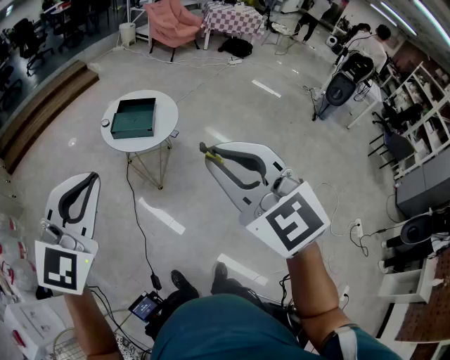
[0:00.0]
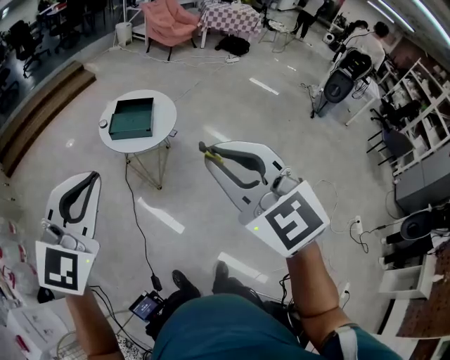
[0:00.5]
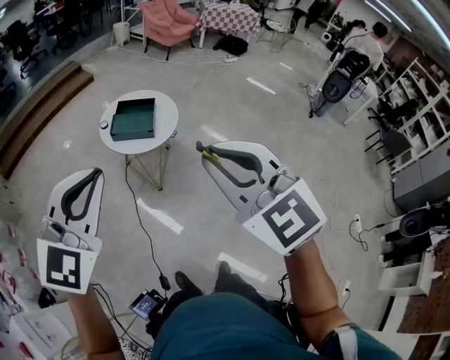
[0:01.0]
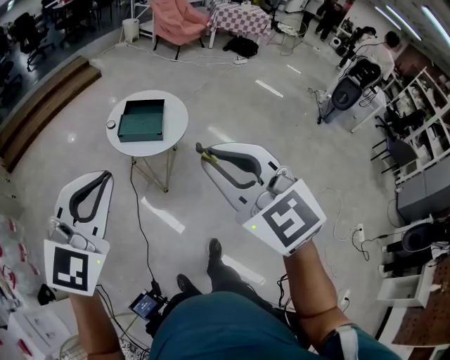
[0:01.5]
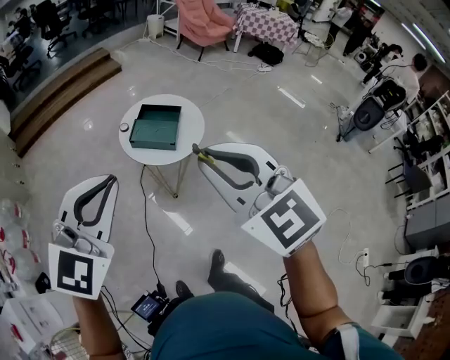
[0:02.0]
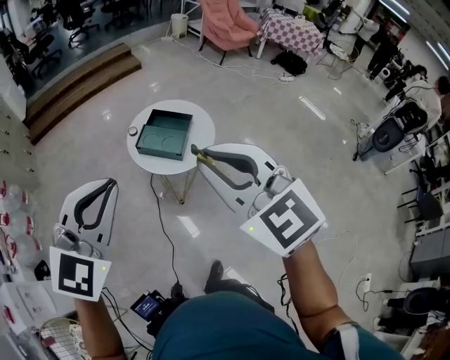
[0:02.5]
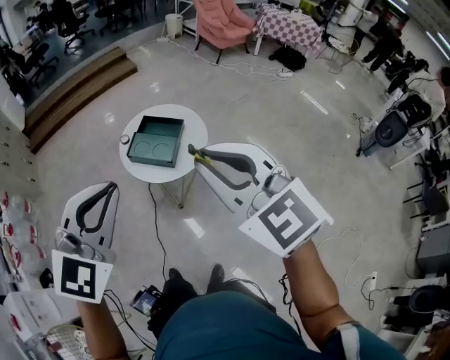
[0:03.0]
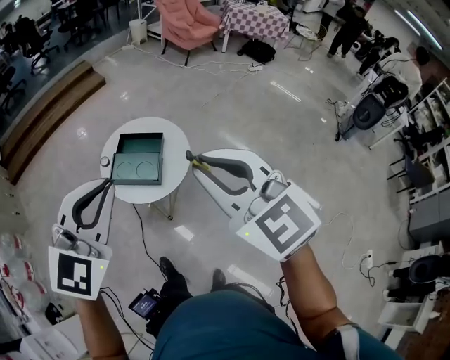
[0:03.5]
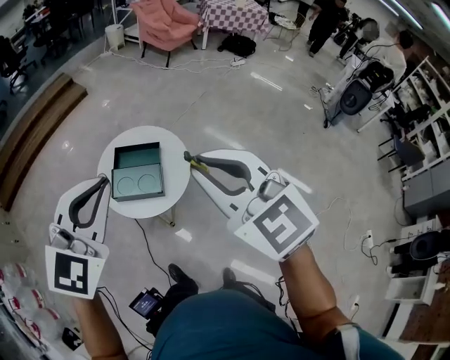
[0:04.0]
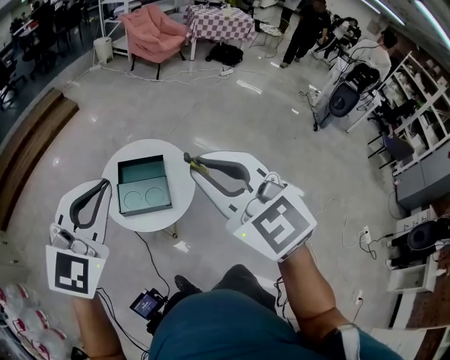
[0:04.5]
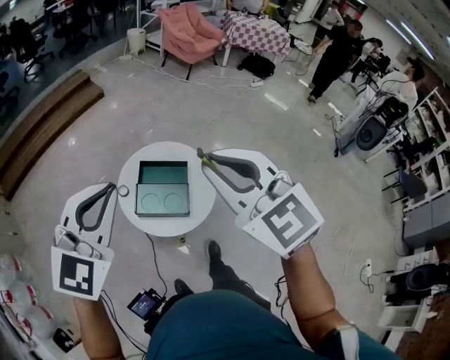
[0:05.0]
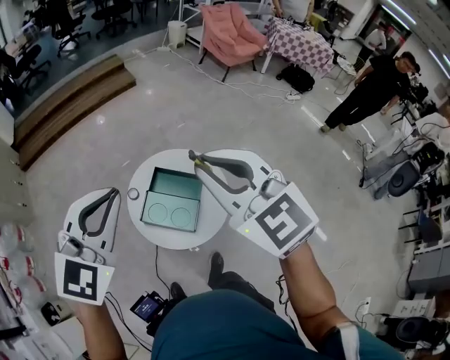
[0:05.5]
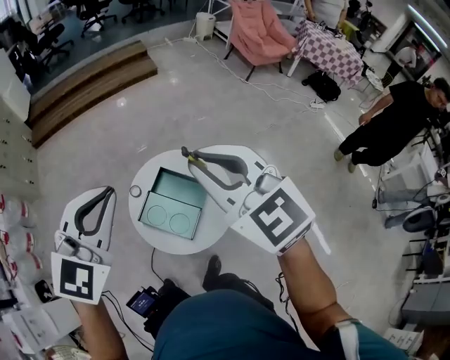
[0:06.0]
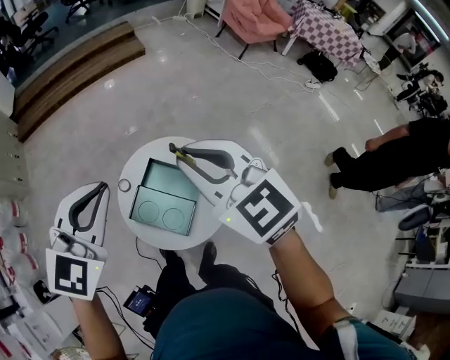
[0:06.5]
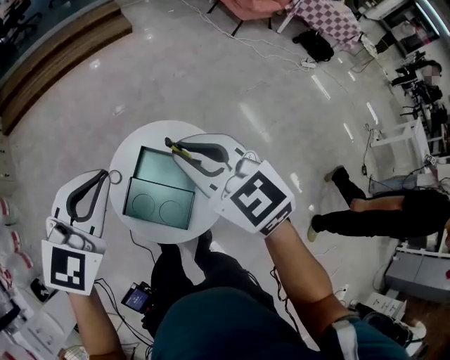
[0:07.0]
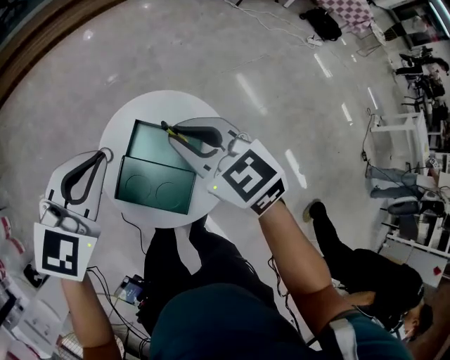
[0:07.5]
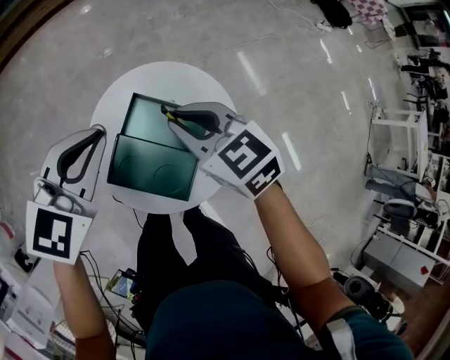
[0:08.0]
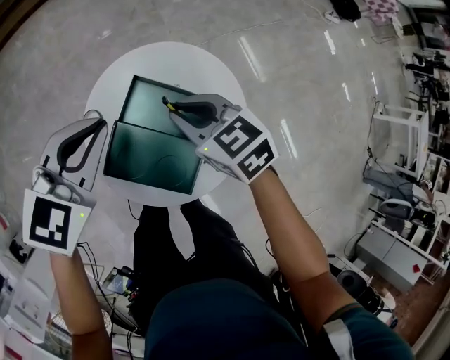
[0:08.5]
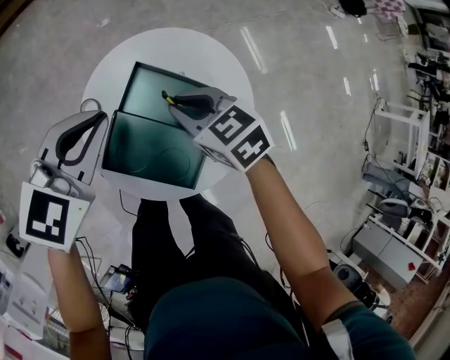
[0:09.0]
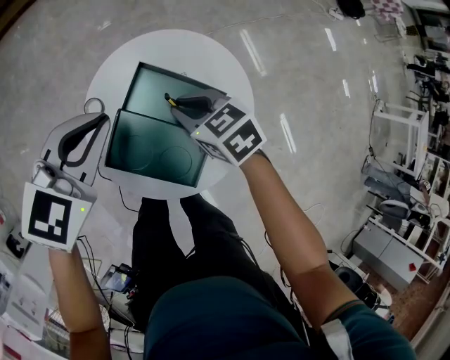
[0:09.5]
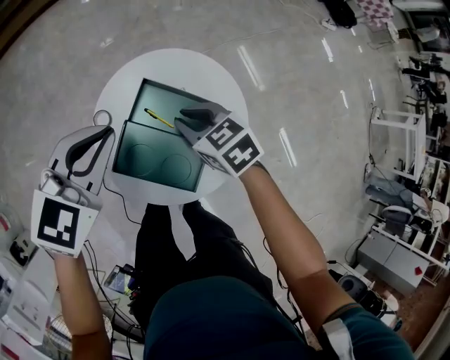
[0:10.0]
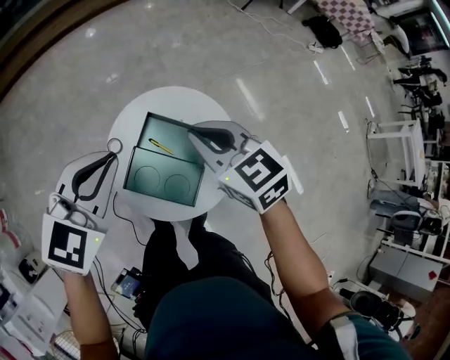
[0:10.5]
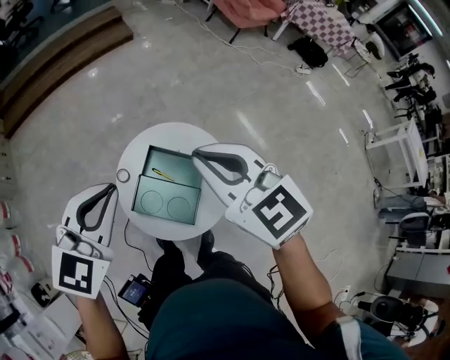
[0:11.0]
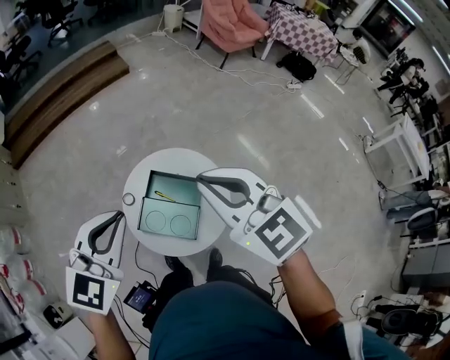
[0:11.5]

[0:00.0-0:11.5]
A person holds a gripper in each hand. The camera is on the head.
0:00.0 to 0:02.0: The two grippers go about 25 cm forward.
0:02.0 to 0:04.0: The grippers both shift forward by approximately 40 cm.
0:04.0 to 0:06.0: The left gripper shifts by roughly 35 cm, and rotates roughly 30 degrees, while the right gripper moves approximately 40 cm, and swivels approximately 30 degrees.
0:06.0 to 0:07.5: Both grippers travel together downward and forward, about 40 cm. The right gripper changes its angle by about 20 degrees.
0:07.5 to 0:09.5: The right gripper shifts roughly 25 cm downward, and changes its angle by approximately 20 degrees. Meanwhile the left gripper travels downward by some 15 cm.
0:09.5 to 0:11.5: The right gripper is displaced upward by approximately 50 cm, and tilts its fingers roughly 30 degrees upward. The left gripper moves upward and backward, approximately 40 cm.

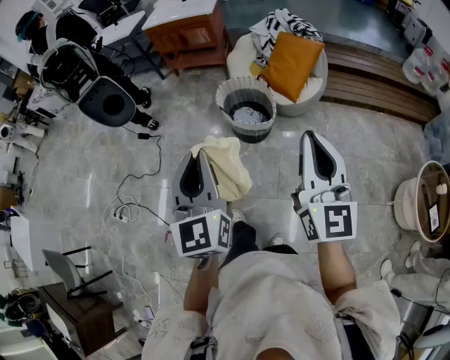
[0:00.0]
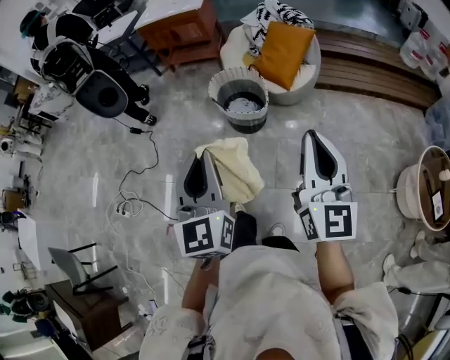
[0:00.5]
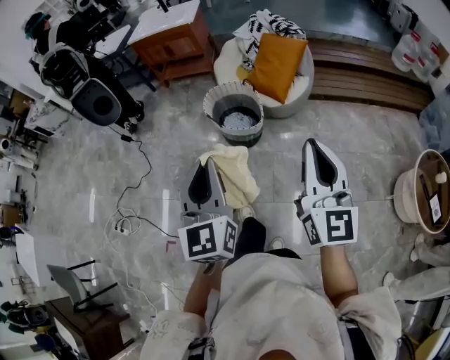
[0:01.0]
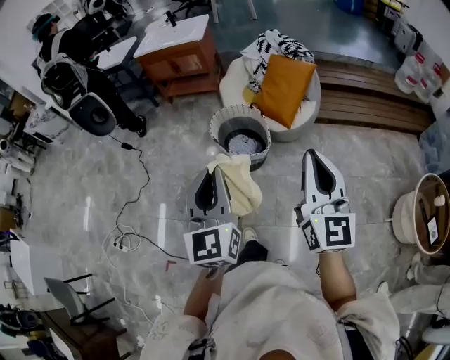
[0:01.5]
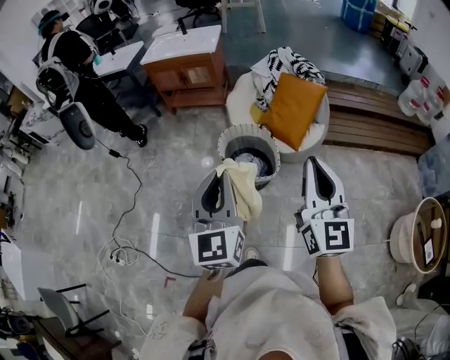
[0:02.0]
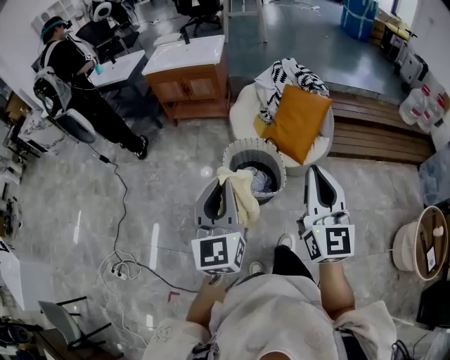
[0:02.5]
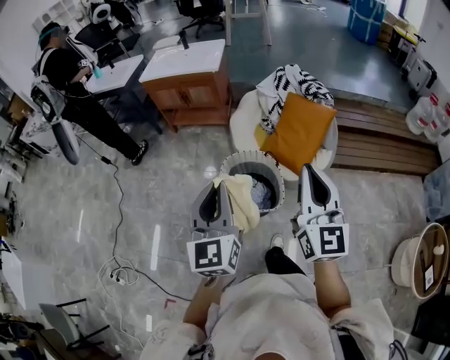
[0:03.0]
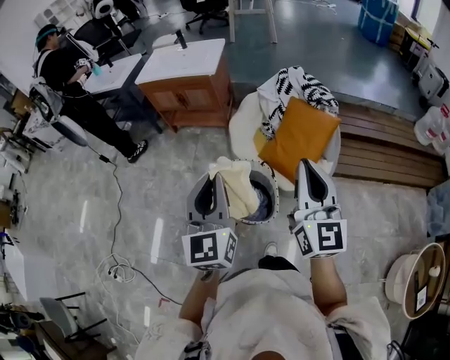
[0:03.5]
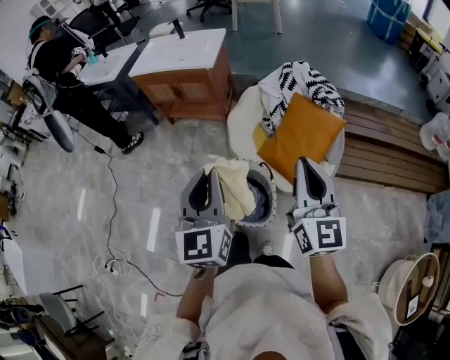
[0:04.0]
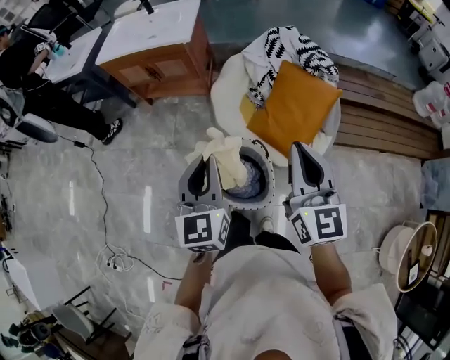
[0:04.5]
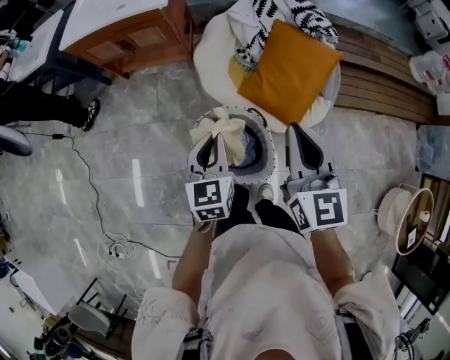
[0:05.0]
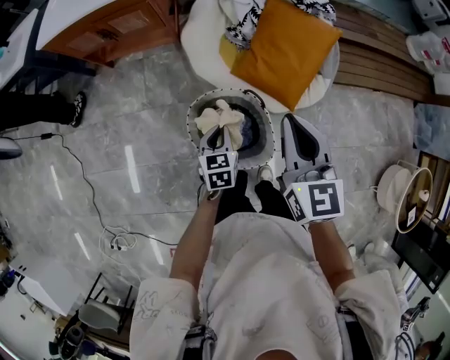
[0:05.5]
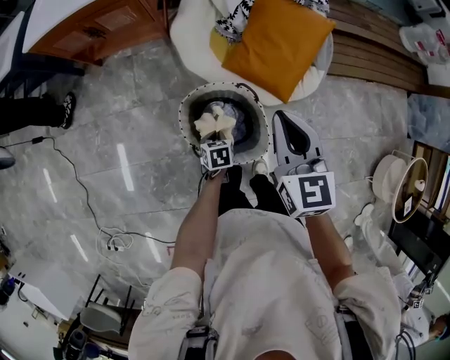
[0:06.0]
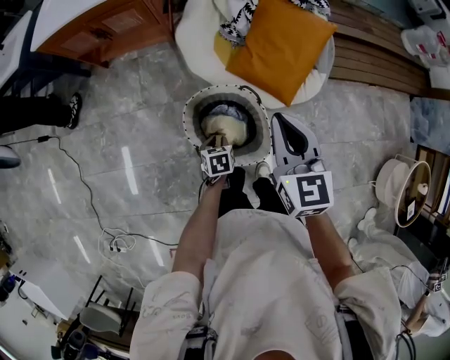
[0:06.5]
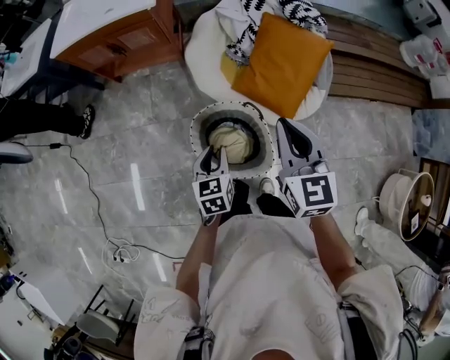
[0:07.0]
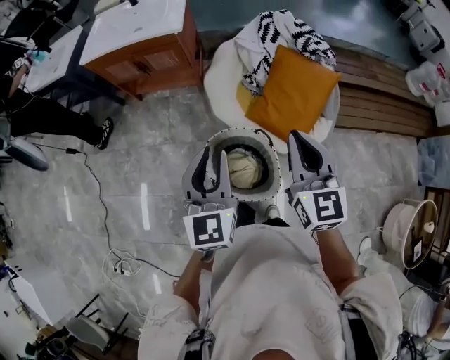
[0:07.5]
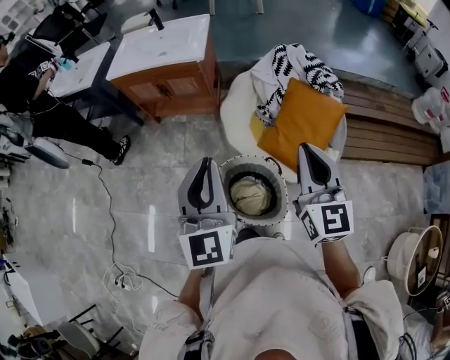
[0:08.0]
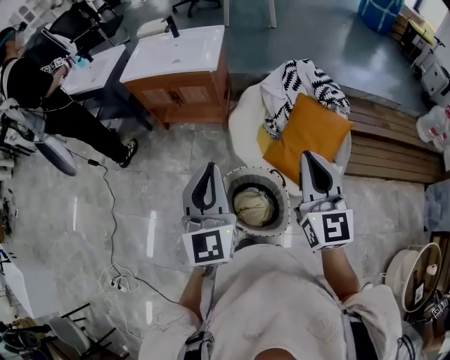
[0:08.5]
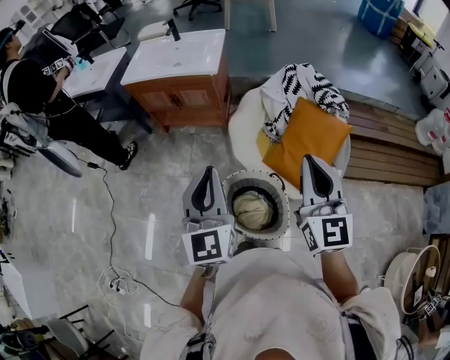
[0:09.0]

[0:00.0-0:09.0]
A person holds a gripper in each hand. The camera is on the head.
0:00.0 to 0:02.0: Both grippers travel together forward, approximately 20 cm.
0:02.0 to 0:04.5: The two grippers travel together, forward, approximately 40 cm.
0:04.5 to 0:07.0: The right gripper heads downward and to the left, covering some 15 cm; the left gripper goes roughly 25 cm downward, and turns by some 30 degrees.
0:07.0 to 0:09.0: The left gripper moves upward, about 35 cm, angles its fingers upward, by approximately 40 degrees, and closes up. Meanwhile the right gripper is displaced upward by approximately 15 cm, and changes its angle by about 20 degrees.

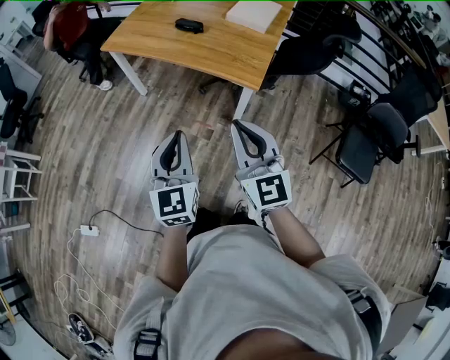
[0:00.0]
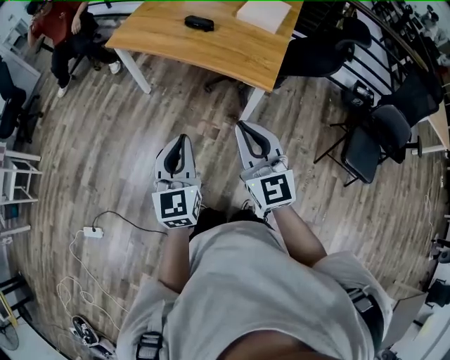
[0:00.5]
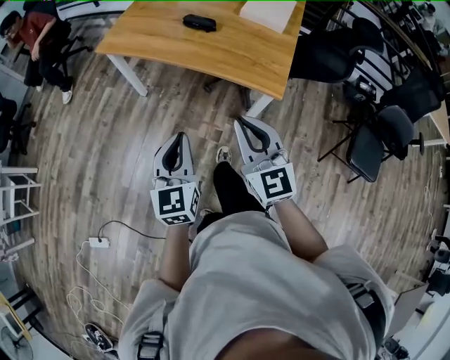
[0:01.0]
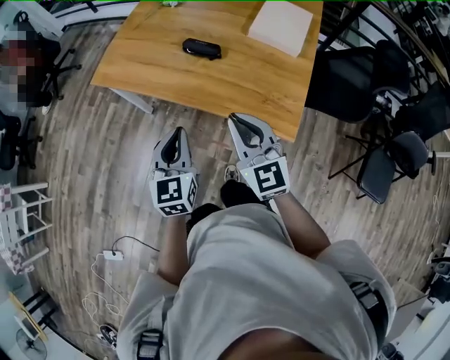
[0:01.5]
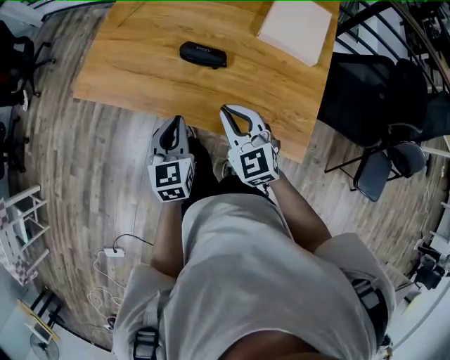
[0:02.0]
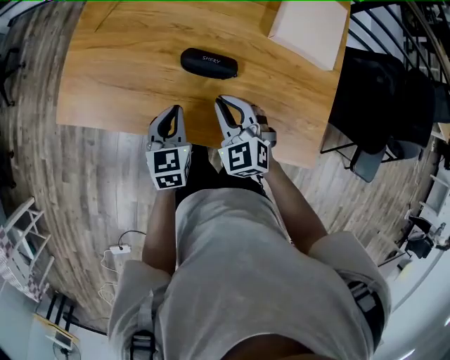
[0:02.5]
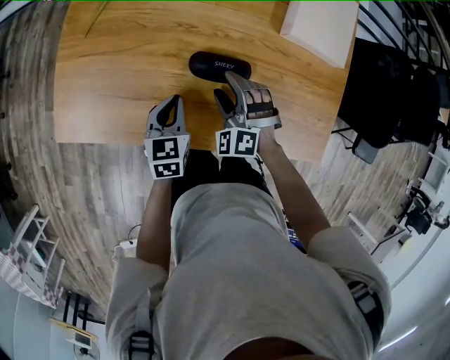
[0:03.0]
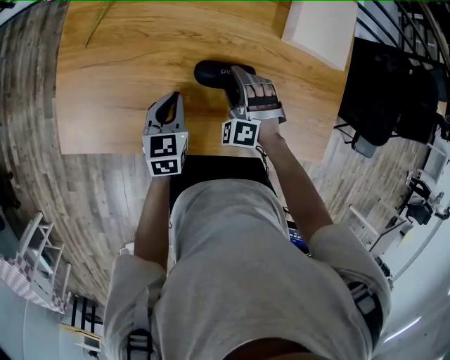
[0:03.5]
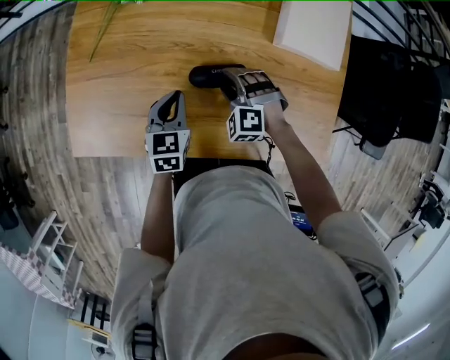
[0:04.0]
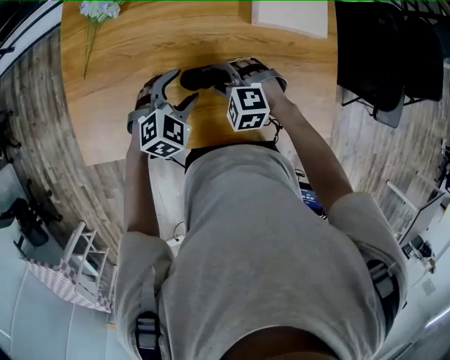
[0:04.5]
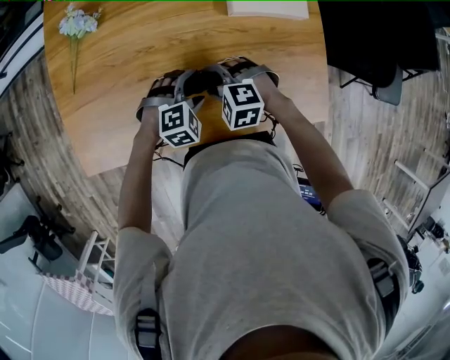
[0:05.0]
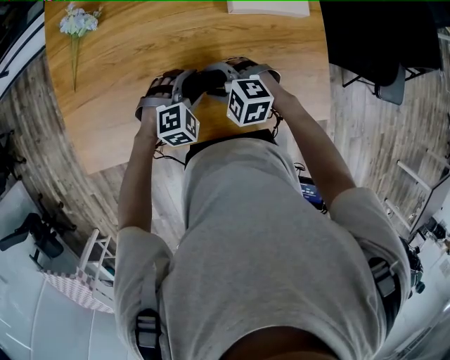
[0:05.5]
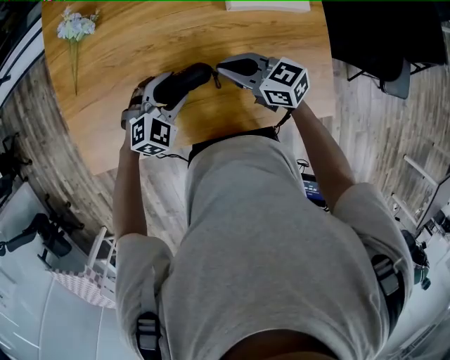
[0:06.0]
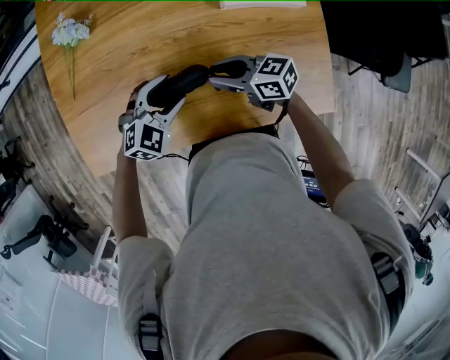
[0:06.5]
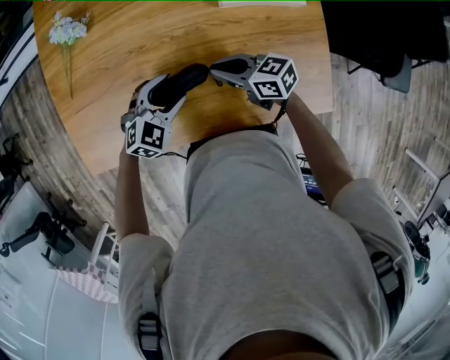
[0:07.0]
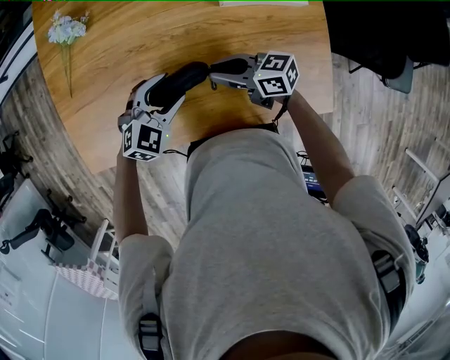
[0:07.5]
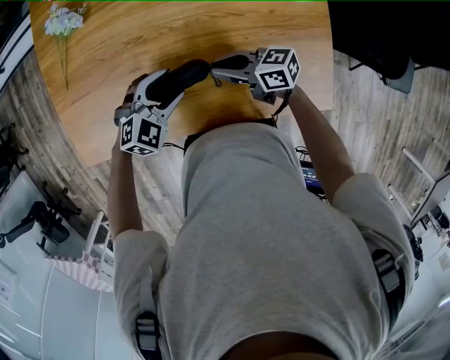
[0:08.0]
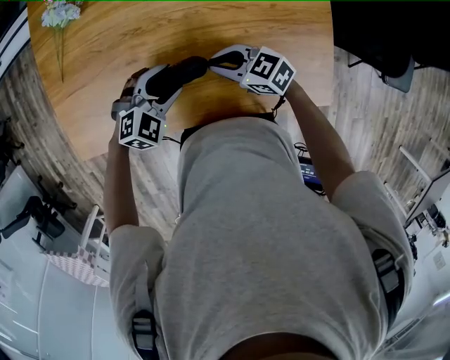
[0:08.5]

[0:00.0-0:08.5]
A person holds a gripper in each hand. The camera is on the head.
0:00.0 to 0:02.0: The two grippers travel together, forward, roughly 50 cm. The left gripper turns by roughly 20 degrees. Meanwhile the right gripper rotates some 20 degrees.
0:02.0 to 0:04.0: The right gripper ends up about 30 cm from where it was, tilts its fingers about 30 degrees downward, and opens up, while the left gripper changes place by about 25 cm, and turns by some 20 degrees.
0:04.0 to 0:06.5: The left gripper moves to the right, some 10 cm, rotates around the line of its fingers by roughly 50 degrees, clockwise from behind, and opens. The right gripper travels upward and to the right by about 10 cm, rotates around the line of its fingers by some 80 degrees, clockwise from behind, and closes its fingers.
0:06.5 to 0:08.5: The right gripper rotates about 20 degrees.
